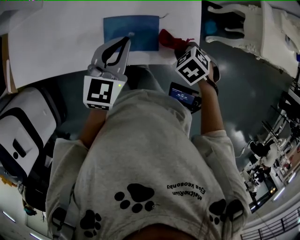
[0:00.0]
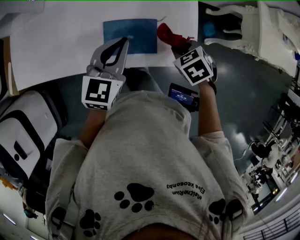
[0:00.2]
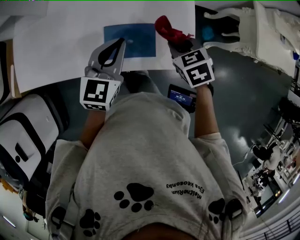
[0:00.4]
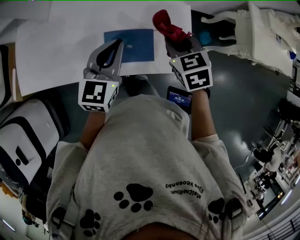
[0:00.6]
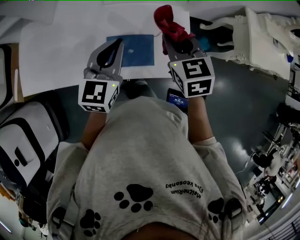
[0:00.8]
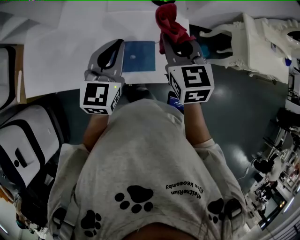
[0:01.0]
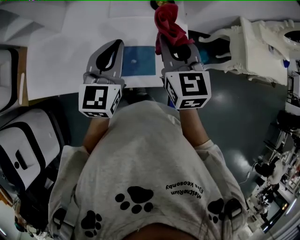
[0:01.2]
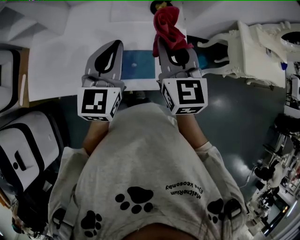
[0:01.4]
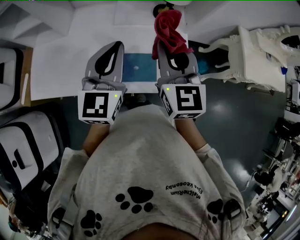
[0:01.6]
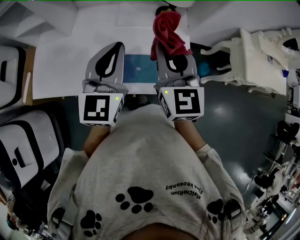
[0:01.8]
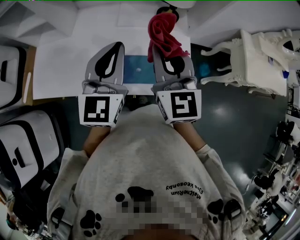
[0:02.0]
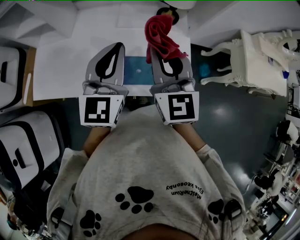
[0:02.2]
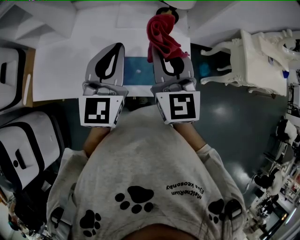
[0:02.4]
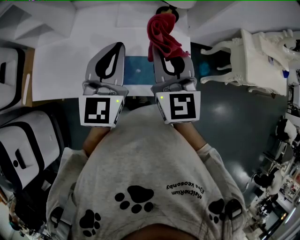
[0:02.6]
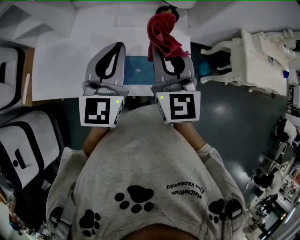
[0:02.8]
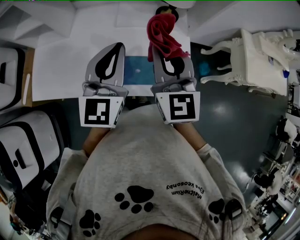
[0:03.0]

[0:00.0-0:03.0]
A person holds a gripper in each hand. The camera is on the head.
0:00.0 to 0:01.6: The right gripper shifts about 35 cm upward, and points its fingers approximately 70 degrees further upward; the left gripper shifts roughly 20 cm upward, and swivels about 20 degrees.
0:01.6 to 0:03.0: There are only small adjustments of the grippers.

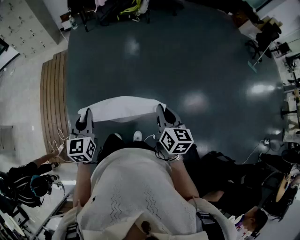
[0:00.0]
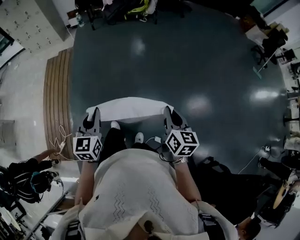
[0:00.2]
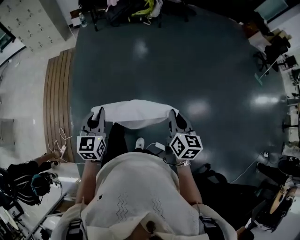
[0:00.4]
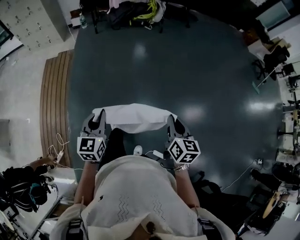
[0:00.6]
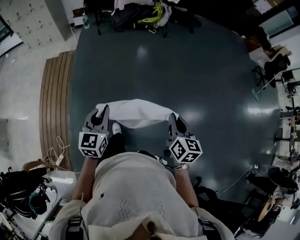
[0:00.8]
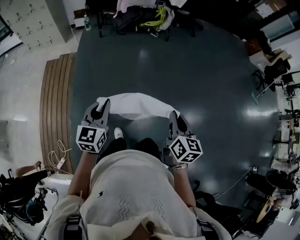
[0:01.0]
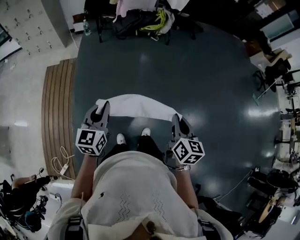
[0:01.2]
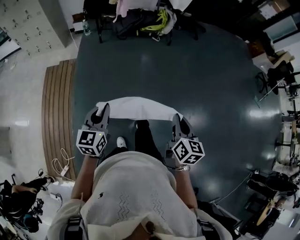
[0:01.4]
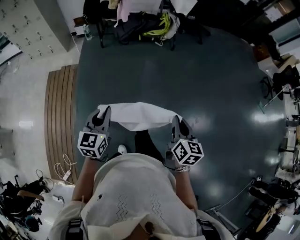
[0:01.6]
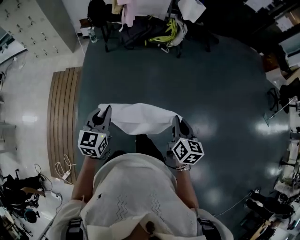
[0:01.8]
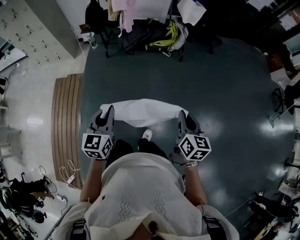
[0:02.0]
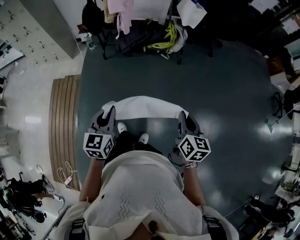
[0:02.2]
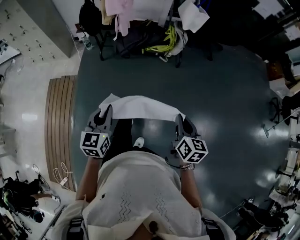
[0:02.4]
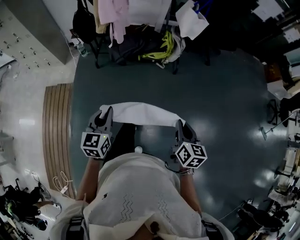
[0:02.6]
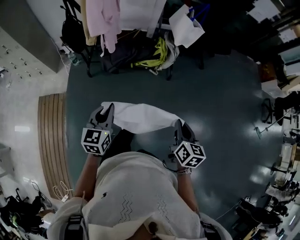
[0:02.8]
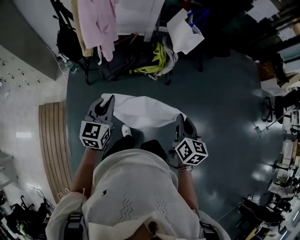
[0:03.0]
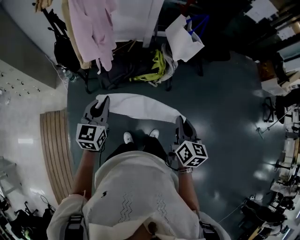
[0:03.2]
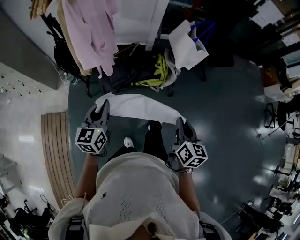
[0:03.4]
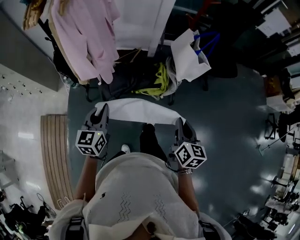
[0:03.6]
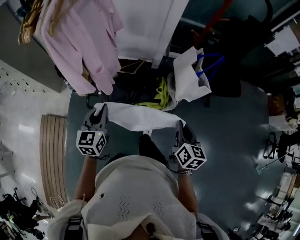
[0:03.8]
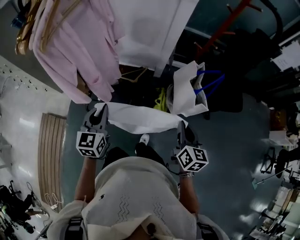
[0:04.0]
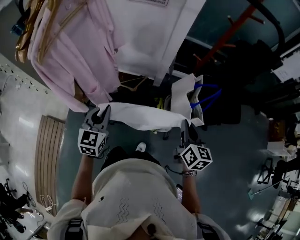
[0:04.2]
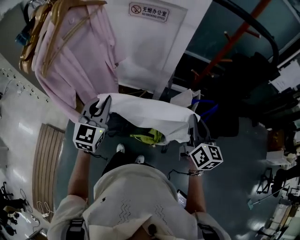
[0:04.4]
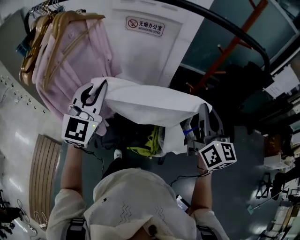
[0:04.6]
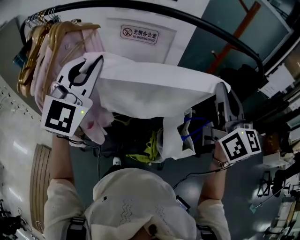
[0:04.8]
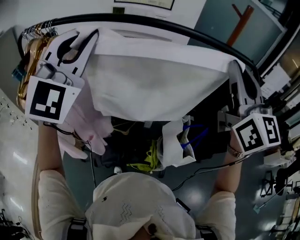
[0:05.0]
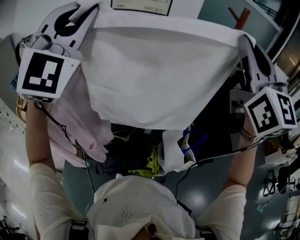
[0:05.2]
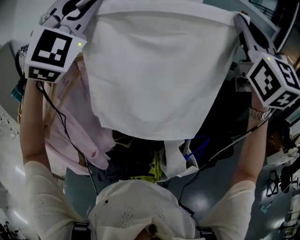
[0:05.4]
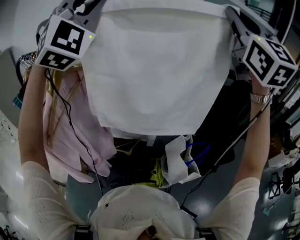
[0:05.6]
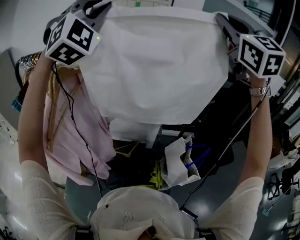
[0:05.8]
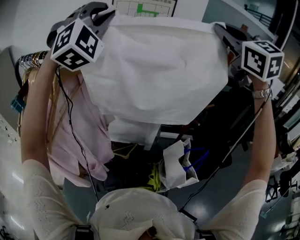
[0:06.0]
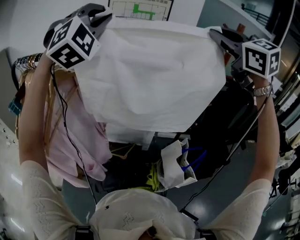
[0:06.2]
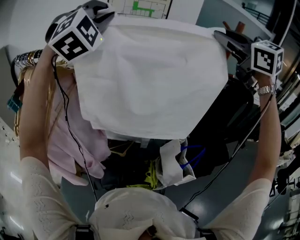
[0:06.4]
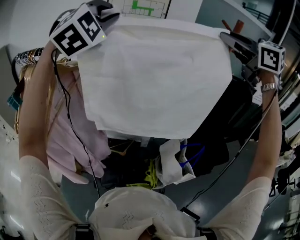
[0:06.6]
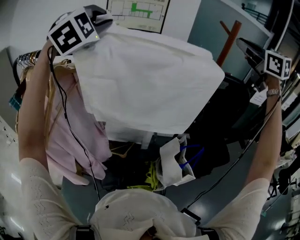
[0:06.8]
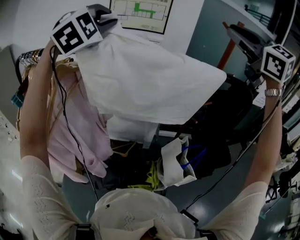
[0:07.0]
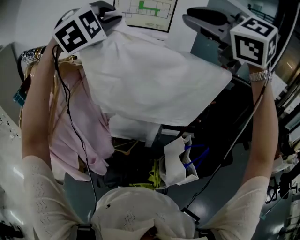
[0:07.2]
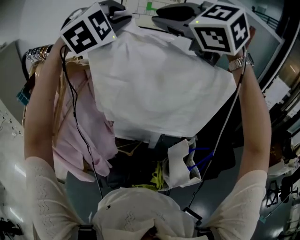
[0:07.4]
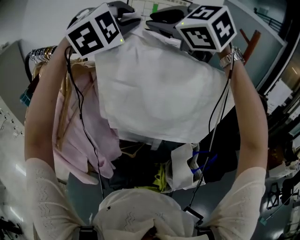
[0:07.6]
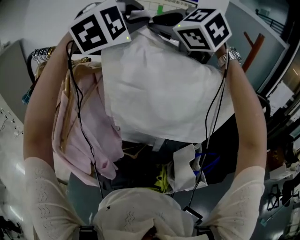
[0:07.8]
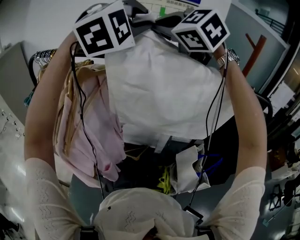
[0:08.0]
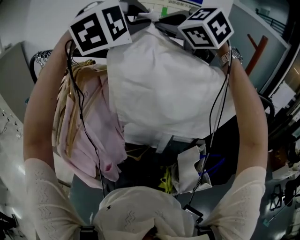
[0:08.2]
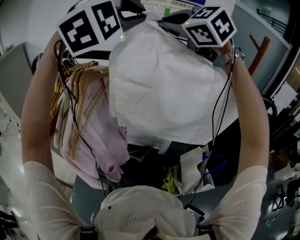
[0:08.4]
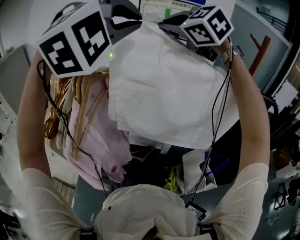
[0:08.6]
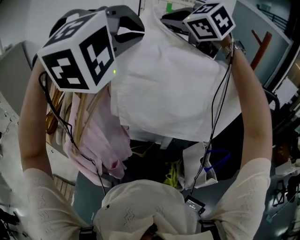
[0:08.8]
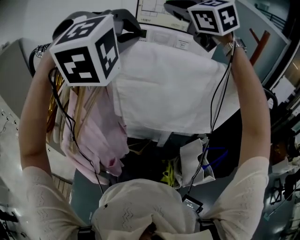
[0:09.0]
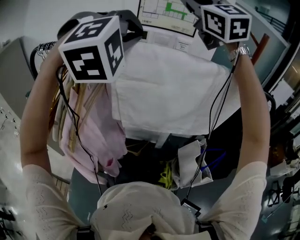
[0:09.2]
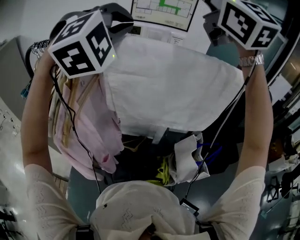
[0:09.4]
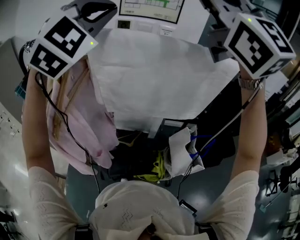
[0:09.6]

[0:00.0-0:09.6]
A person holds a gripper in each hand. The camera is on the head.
0:00.0 to 0:01.6: Both grippers are carried forward, some 50 cm.
0:01.6 to 0:03.2: Both grippers are carried forward, about 70 cm.
0:03.2 to 0:04.8: The pair of grippers is taken forward, roughly 50 cm. The grippers both shift upward by approximately 35 cm. The left gripper turns by about 50 degrees. Meanwhile the right gripper angles its fingers upward, by some 40 degrees.
0:04.8 to 0:06.4: The left gripper goes about 30 cm forward and upward, and rotates around the line of its fingers by about 40 degrees, clockwise from behind. The right gripper shifts approximately 30 cm upward and forward, and swivels roughly 40 degrees.
0:06.4 to 0:08.0: The right gripper moves to the left, about 25 cm, and swivels roughly 30 degrees.
0:08.0 to 0:09.6: The left gripper shifts some 10 cm backward and to the left; the right gripper moves backward, upward and to the right, roughly 25 cm, and angles its fingers upward, by some 40 degrees.

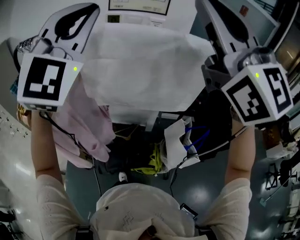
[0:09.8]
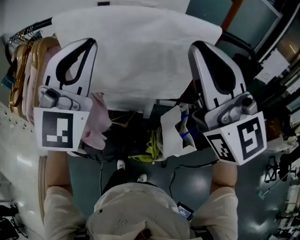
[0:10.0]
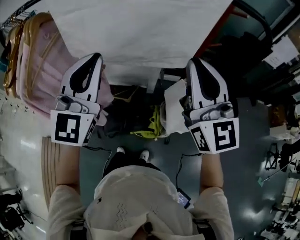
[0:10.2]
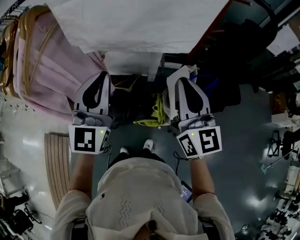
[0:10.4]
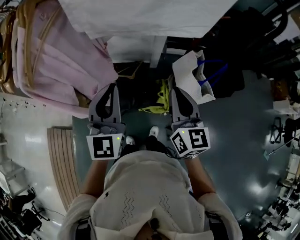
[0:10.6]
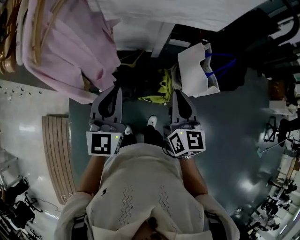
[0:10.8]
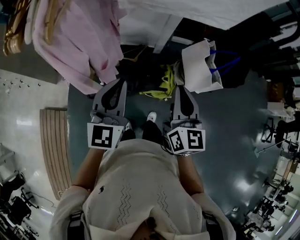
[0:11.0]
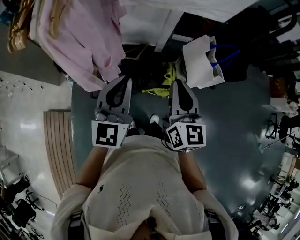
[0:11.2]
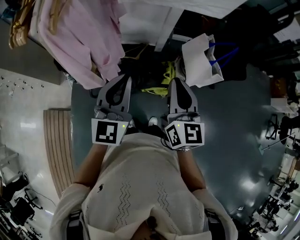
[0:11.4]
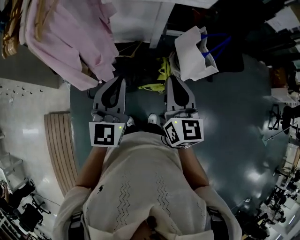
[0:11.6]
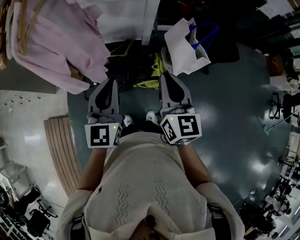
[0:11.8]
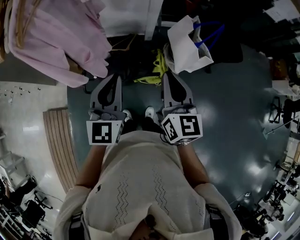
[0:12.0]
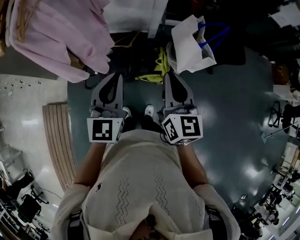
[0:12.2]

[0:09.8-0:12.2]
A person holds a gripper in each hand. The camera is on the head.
0:09.8 to 0:11.0: The right gripper shifts roughly 50 cm downward, and swivels roughly 60 degrees, while the left gripper heads downward and backward, covering about 50 cm, and twists about 50 degrees counterclockwise, seen from behind.
0:11.0 to 0:12.2: Both grippers move to the right, about 10 cm.

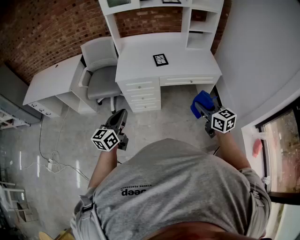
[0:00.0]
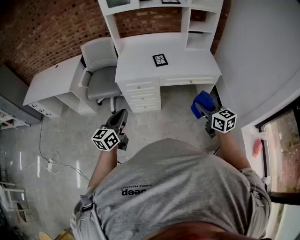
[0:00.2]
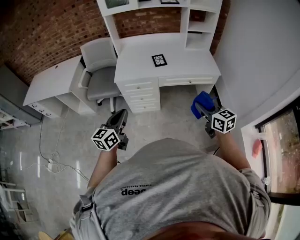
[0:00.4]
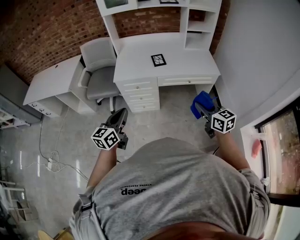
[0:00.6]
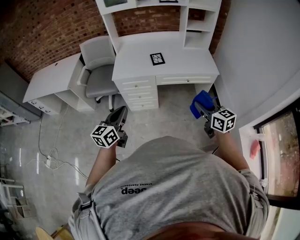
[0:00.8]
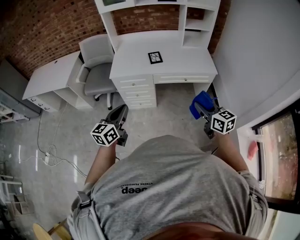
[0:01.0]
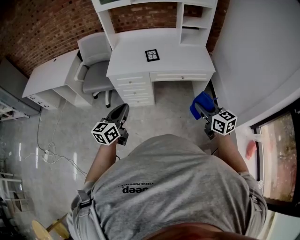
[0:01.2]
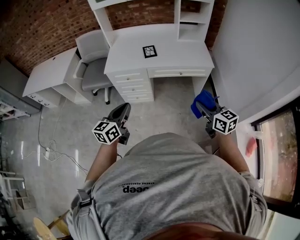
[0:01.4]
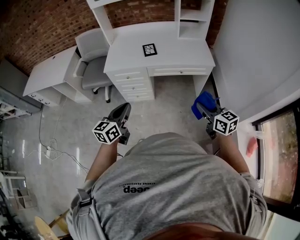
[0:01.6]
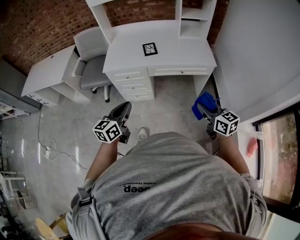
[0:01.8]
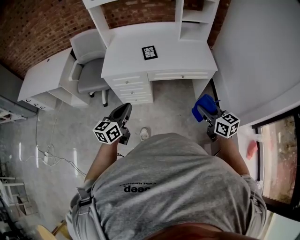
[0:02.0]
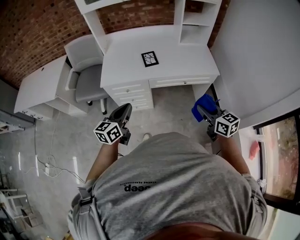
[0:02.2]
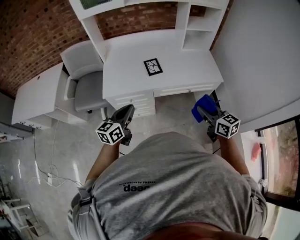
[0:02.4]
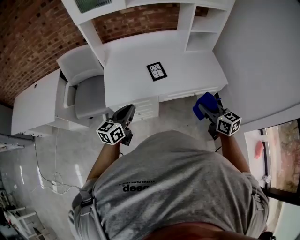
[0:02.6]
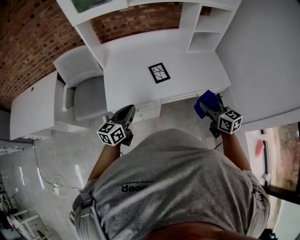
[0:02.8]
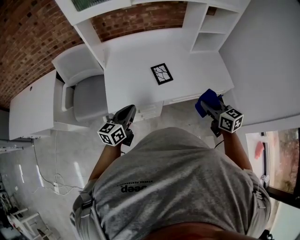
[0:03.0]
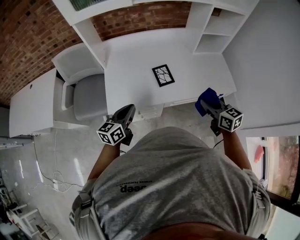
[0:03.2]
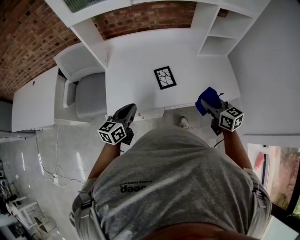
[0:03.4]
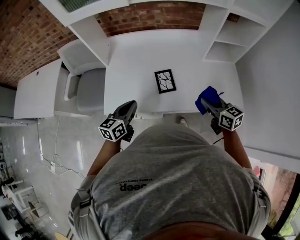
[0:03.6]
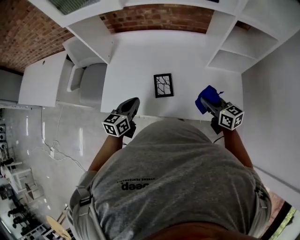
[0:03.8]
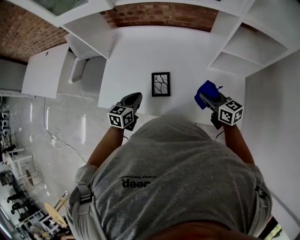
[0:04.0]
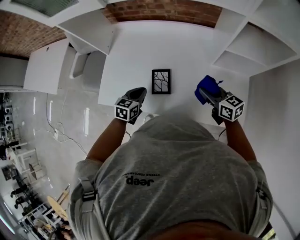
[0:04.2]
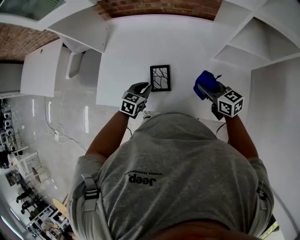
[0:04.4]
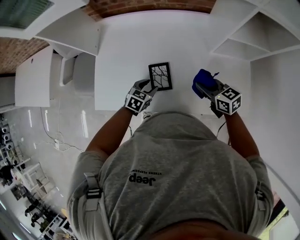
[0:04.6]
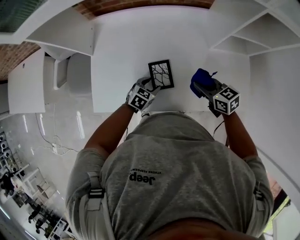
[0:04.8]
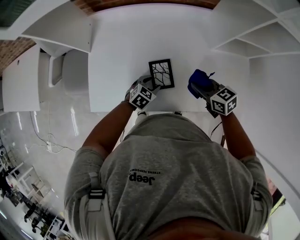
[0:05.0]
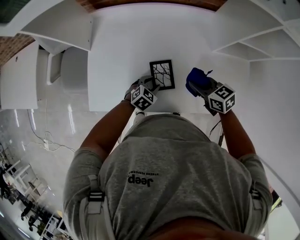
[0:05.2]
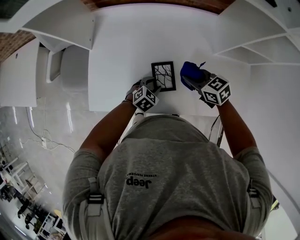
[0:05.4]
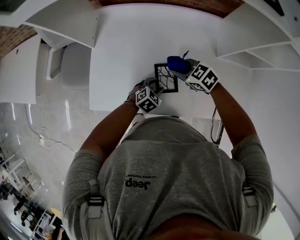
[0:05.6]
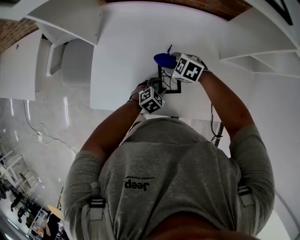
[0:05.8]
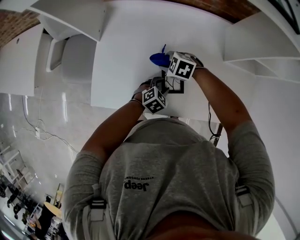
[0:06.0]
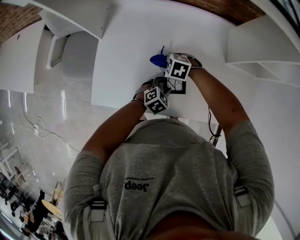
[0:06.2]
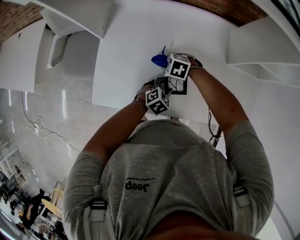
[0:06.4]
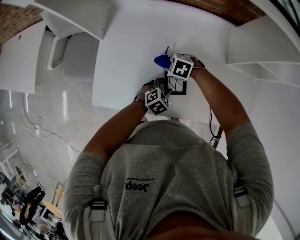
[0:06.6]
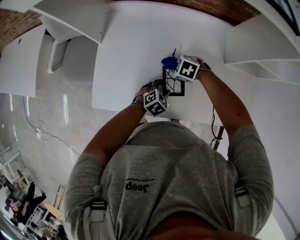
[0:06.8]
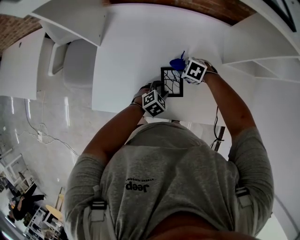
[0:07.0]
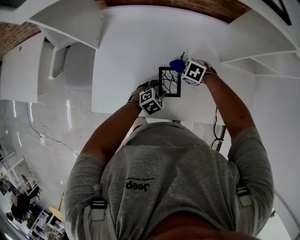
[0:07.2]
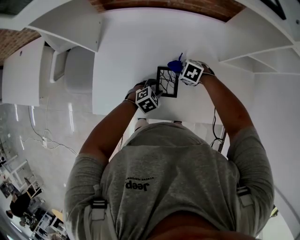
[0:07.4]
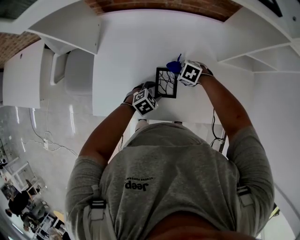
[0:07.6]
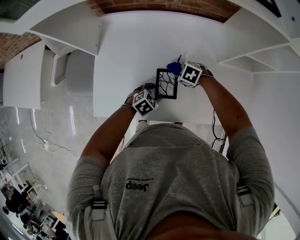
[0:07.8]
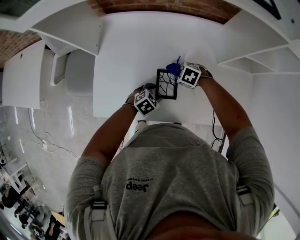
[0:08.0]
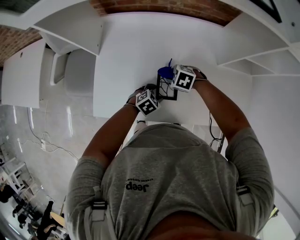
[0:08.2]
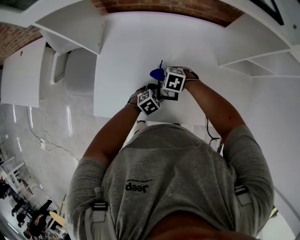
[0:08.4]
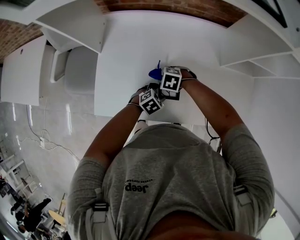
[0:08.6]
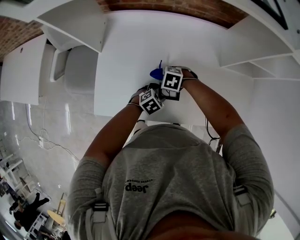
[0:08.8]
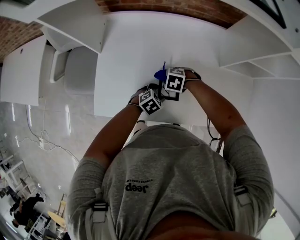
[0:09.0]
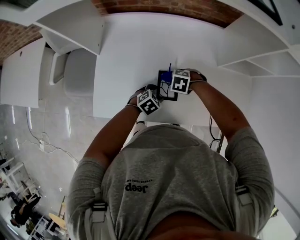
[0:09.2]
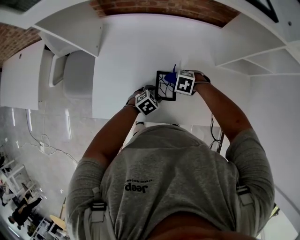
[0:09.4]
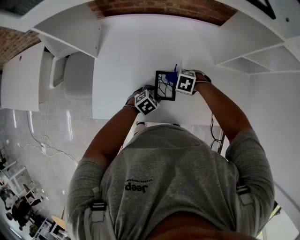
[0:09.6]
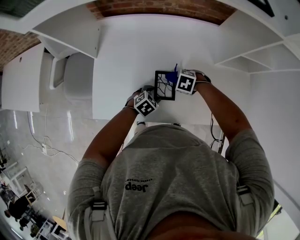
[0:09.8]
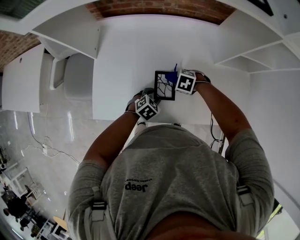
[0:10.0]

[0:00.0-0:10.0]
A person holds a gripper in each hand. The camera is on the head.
0:00.0 to 0:01.4: The grippers both shift to the right by some 15 cm.
0:01.4 to 0:02.8: The right gripper is displaced forward and to the left by about 35 cm. The left gripper goes some 35 cm forward.
0:02.8 to 0:04.2: The right gripper shifts by approximately 35 cm, and changes its angle by approximately 30 degrees, while the left gripper moves about 30 cm, and turns by about 30 degrees.
0:04.2 to 0:05.8: The left gripper is displaced downward by roughly 15 cm, changes its angle by approximately 40 degrees, and opens its fingers, while the right gripper changes place by some 30 cm, and tips its fingers downward by approximately 30 degrees.
0:05.8 to 0:07.2: The right gripper moves some 10 cm.
0:07.2 to 0:08.6: The right gripper ends up roughly 10 cm from where it was.
0:08.6 to 0:10.0: The right gripper changes place by about 10 cm.
